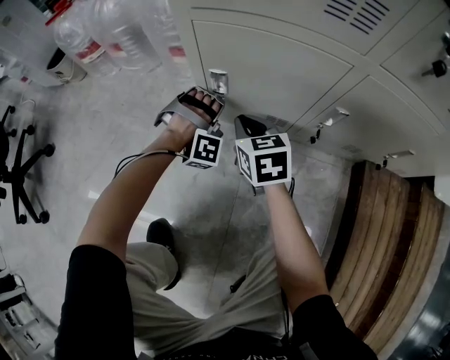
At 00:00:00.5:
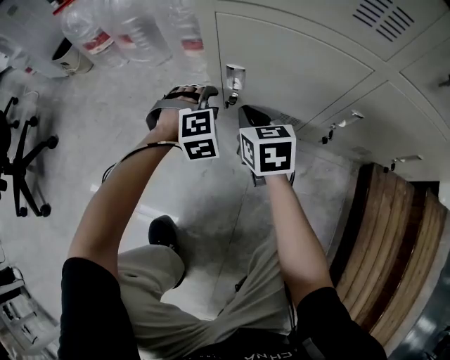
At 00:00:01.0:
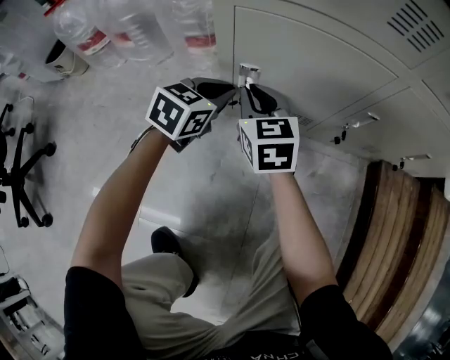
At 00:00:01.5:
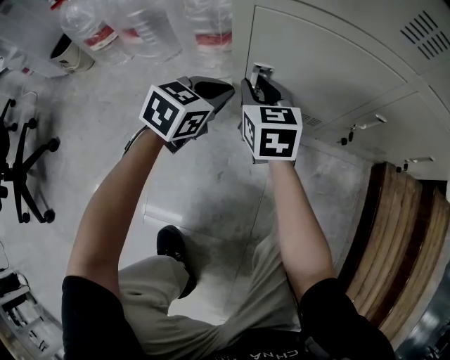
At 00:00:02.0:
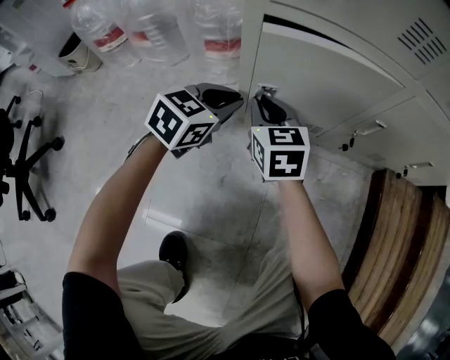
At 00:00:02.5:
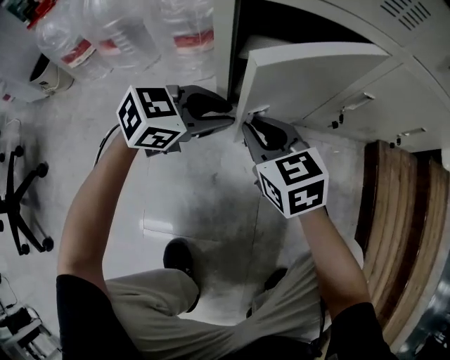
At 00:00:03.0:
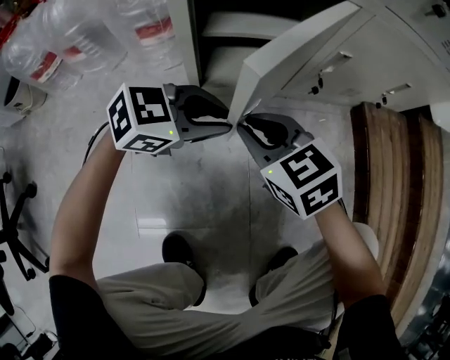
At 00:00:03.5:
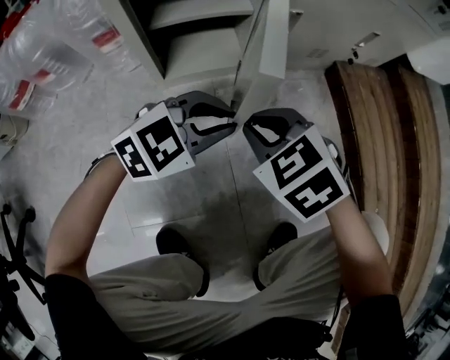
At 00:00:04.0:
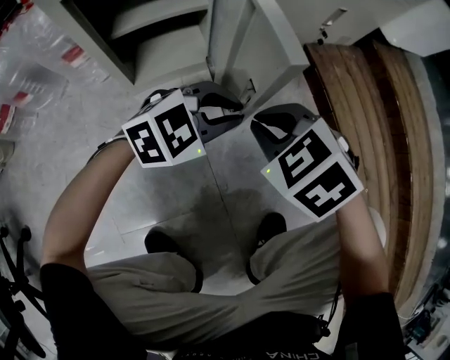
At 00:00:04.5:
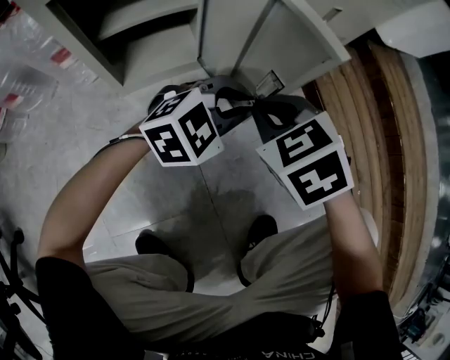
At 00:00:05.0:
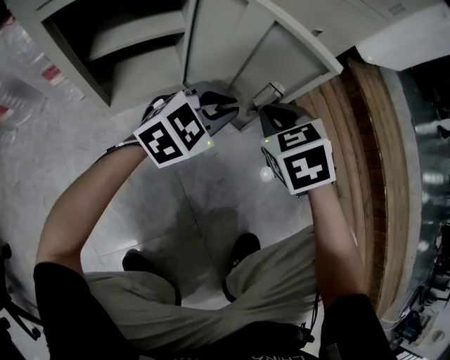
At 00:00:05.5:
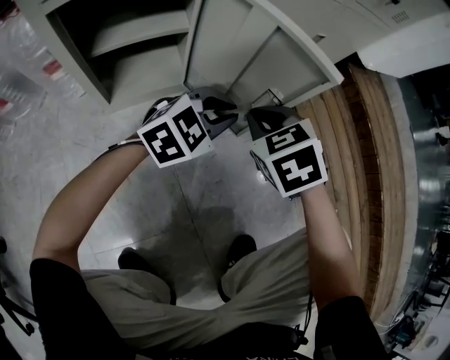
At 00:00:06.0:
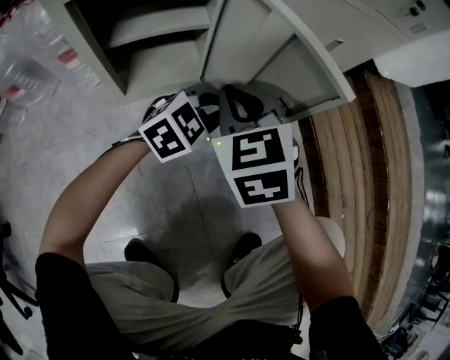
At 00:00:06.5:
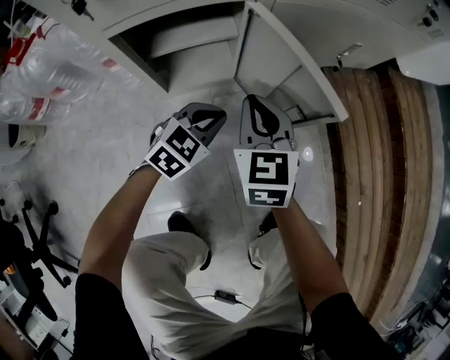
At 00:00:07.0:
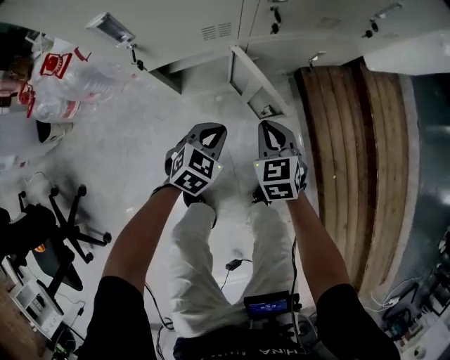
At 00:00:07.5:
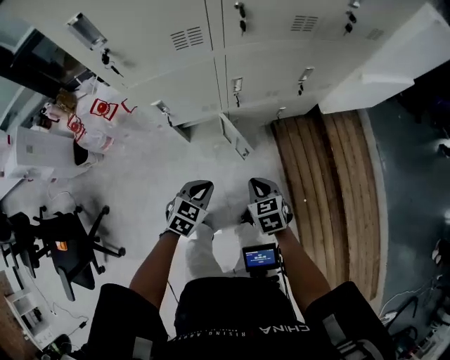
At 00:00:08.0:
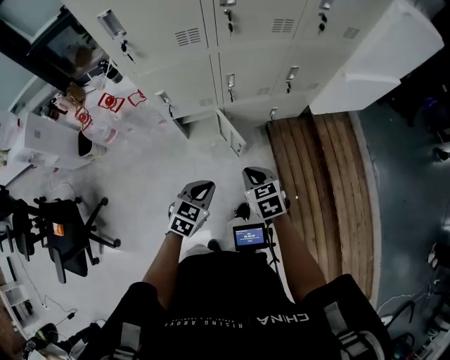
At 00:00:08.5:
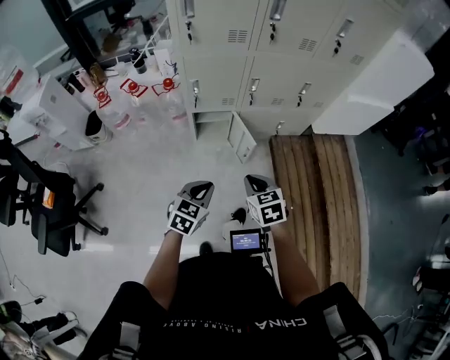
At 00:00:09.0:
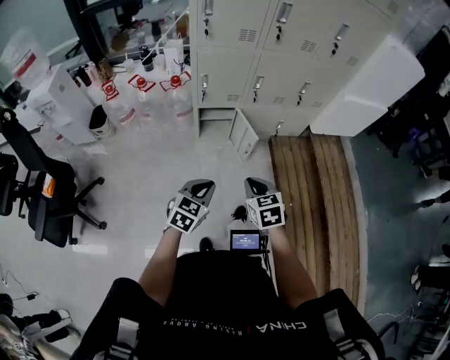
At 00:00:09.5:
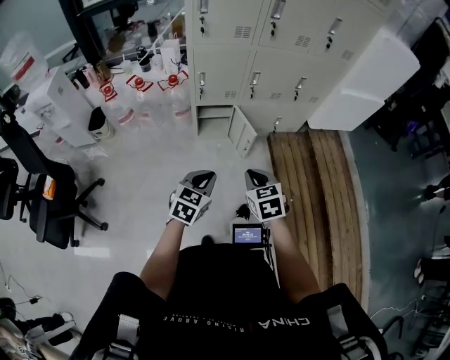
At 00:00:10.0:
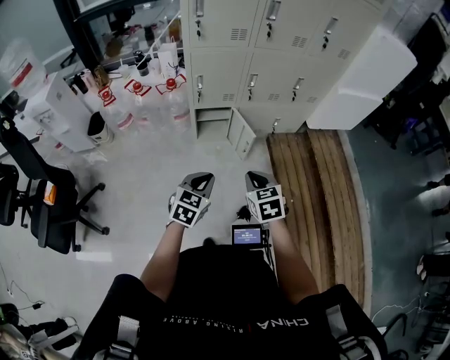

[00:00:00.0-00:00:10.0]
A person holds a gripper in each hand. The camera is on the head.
00:00:00.0 to 00:00:02.0: The right gripper ends up some 10 cm from where it was, while the left gripper moves upward, approximately 10 cm, rolls counterclockwise, seen from behind, by roughly 90 degrees, and opens, then closes once more.
00:00:02.0 to 00:00:04.0: The right gripper shifts by about 30 cm, and angles its fingers downward, by roughly 30 degrees. Meanwhile the left gripper changes place by some 30 cm, and rotates some 60 degrees.
00:00:04.0 to 00:00:06.0: The right gripper travels forward and to the left by about 10 cm, and swivels some 30 degrees. The left gripper travels forward by roughly 10 cm.
00:00:06.0 to 00:00:08.0: The left gripper shifts about 70 cm upward and backward, and swivels about 40 degrees. The right gripper is displaced upward by about 50 cm, and rotates some 20 degrees.
00:00:08.0 to 00:00:10.0: The left gripper is displaced backward and to the left by roughly 25 cm, while the right gripper travels backward by approximately 25 cm.

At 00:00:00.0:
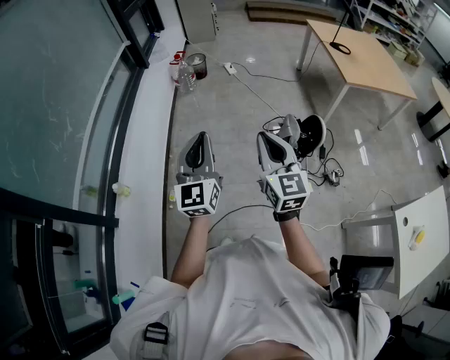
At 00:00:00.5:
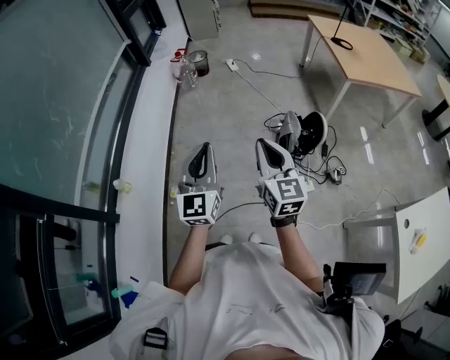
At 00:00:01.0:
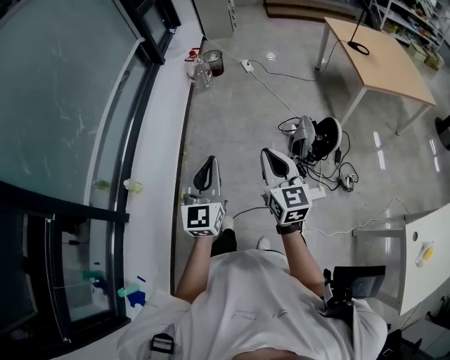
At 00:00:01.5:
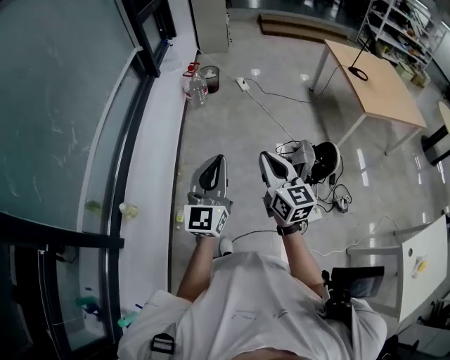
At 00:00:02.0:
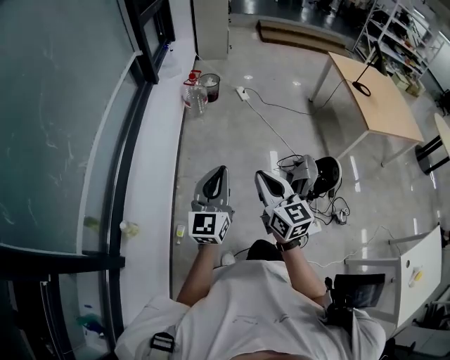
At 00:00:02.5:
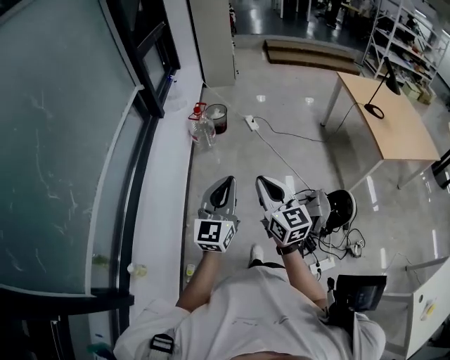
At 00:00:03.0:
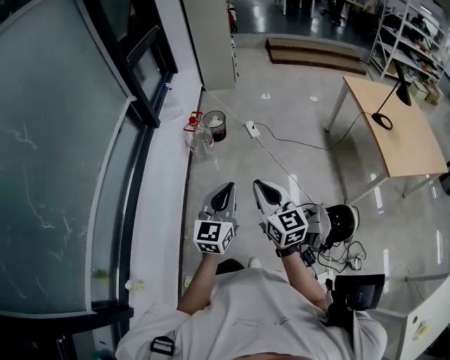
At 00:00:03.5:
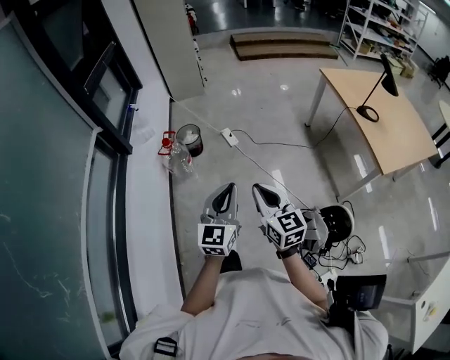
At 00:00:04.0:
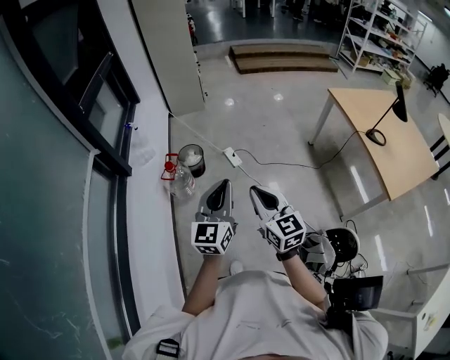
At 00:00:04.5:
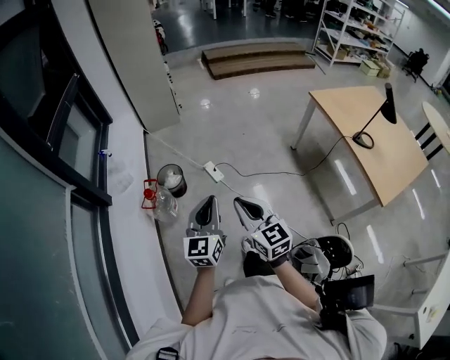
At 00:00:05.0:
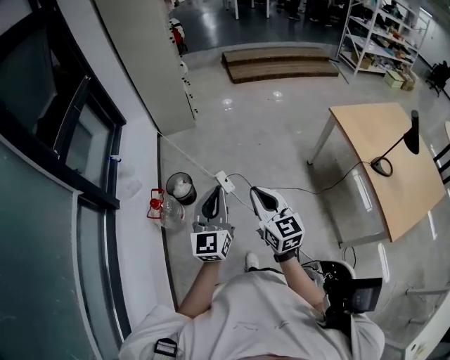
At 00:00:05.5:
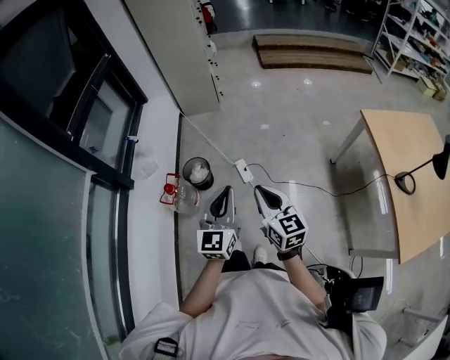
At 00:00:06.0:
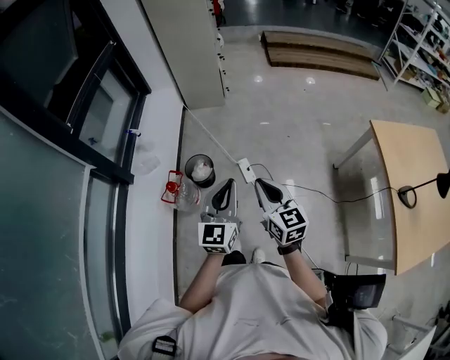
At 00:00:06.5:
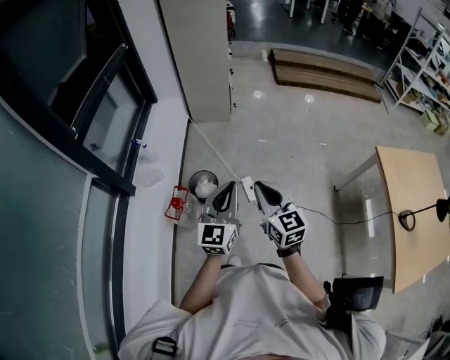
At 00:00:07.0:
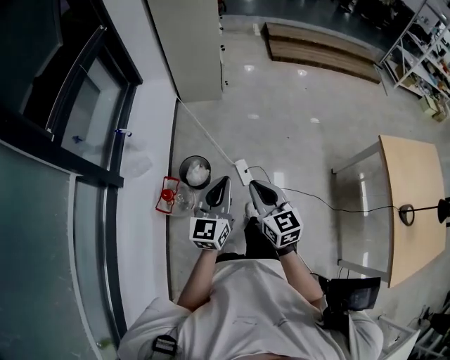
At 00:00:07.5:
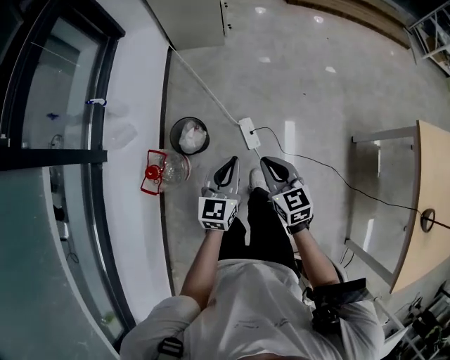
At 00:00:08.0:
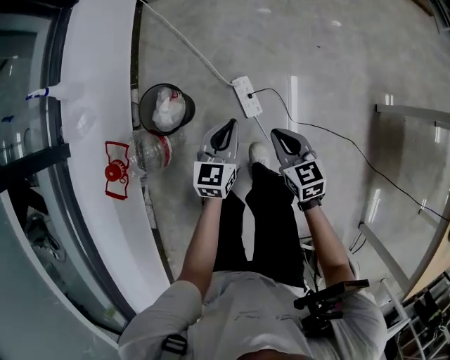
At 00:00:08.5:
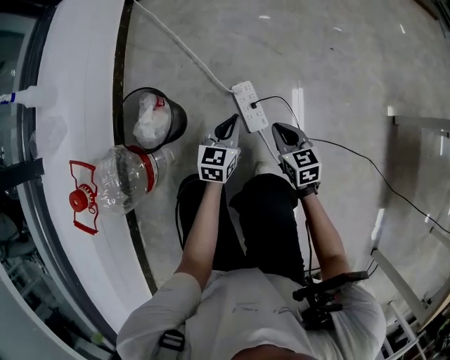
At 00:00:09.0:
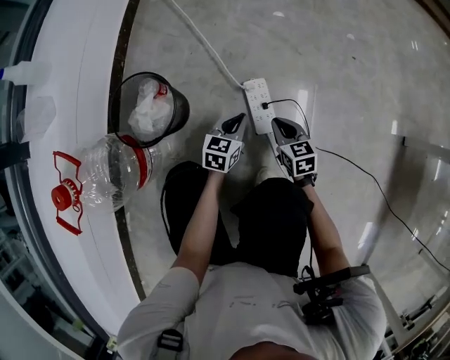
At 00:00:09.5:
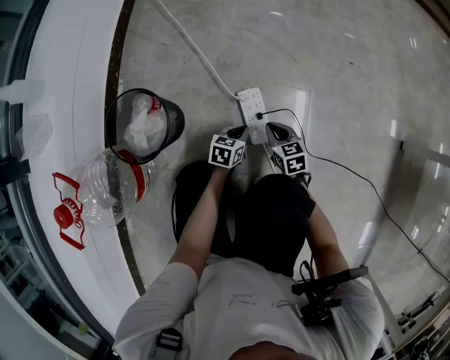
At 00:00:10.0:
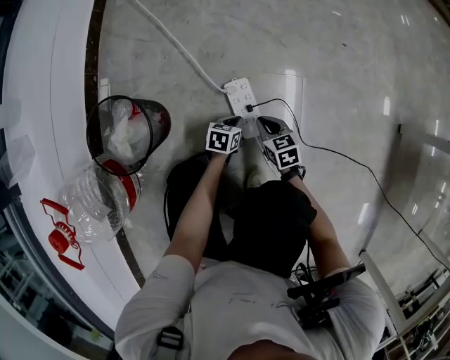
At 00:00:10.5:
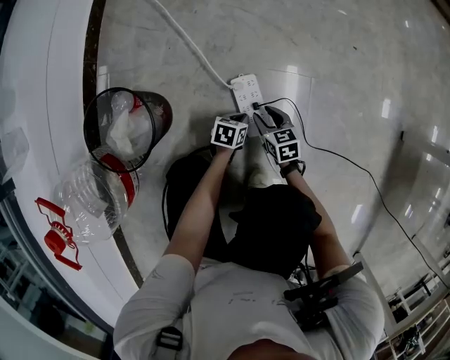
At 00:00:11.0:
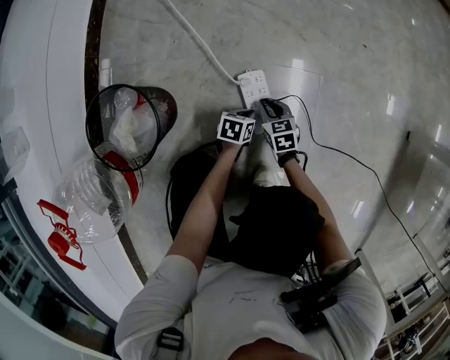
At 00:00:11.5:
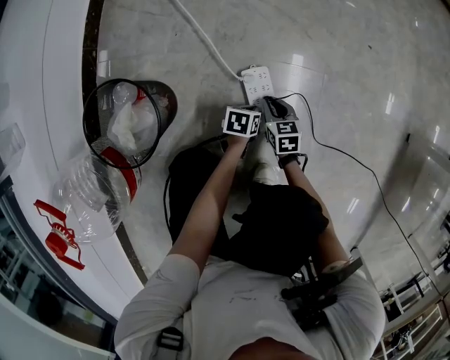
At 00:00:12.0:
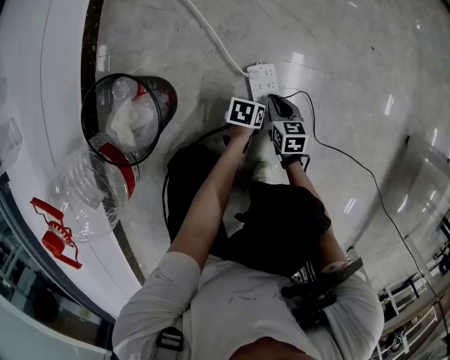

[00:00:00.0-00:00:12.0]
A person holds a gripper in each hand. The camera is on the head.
00:00:00.0 to 00:00:02.0: Both grippers travel together forward and to the left, some 25 cm.
00:00:02.0 to 00:00:04.0: The pair of grippers is taken forward, approximately 60 cm.
00:00:04.0 to 00:00:06.0: Both grippers move forward, approximately 35 cm.
00:00:06.0 to 00:00:08.0: The grippers both shift downward and forward by roughly 60 cm. The right gripper changes its angle by about 20 degrees; the left gripper turns by about 20 degrees.
00:00:08.0 to 00:00:10.0: Both grippers move downward, about 50 cm. The left gripper swivels some 40 degrees.
00:00:10.0 to 00:00:12.0: The right gripper moves approximately 5 cm, and opens, then closes once more.

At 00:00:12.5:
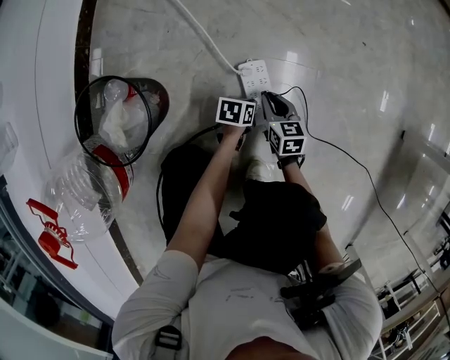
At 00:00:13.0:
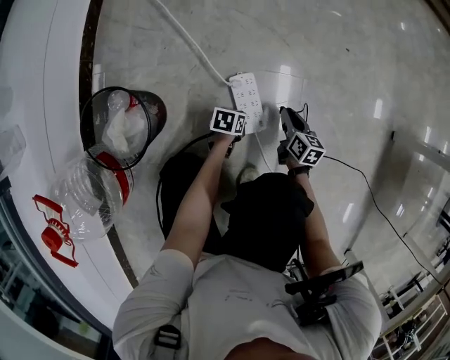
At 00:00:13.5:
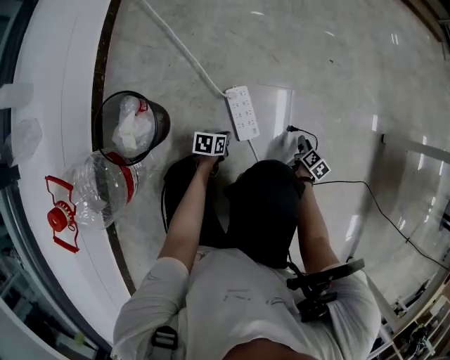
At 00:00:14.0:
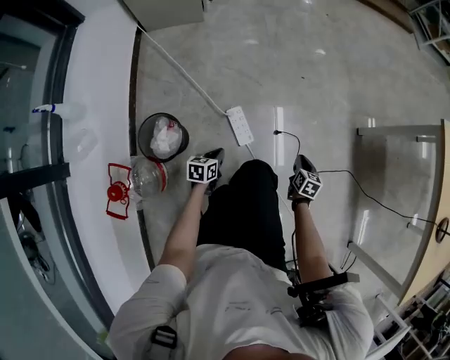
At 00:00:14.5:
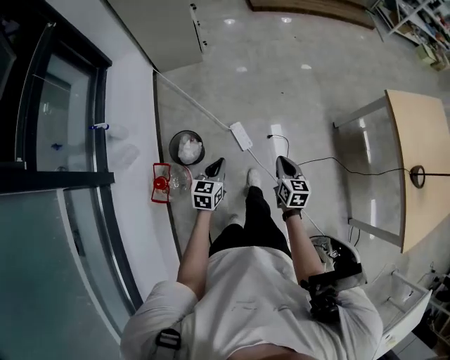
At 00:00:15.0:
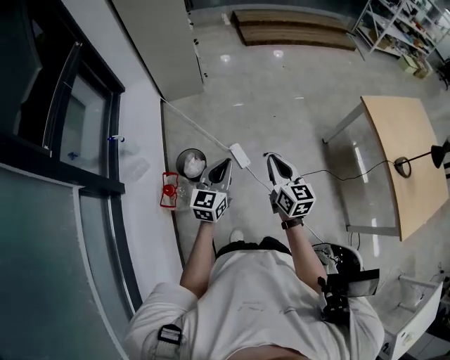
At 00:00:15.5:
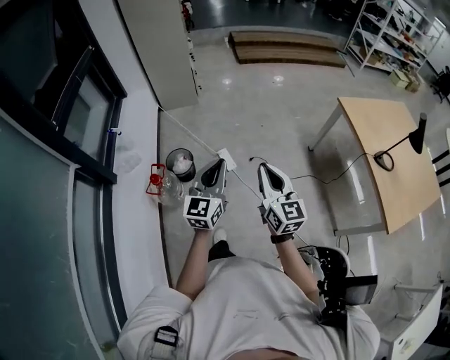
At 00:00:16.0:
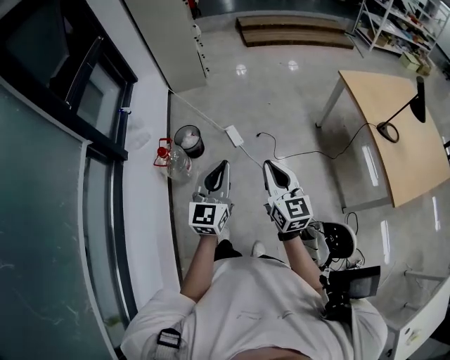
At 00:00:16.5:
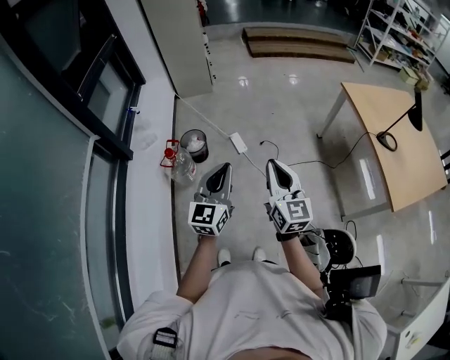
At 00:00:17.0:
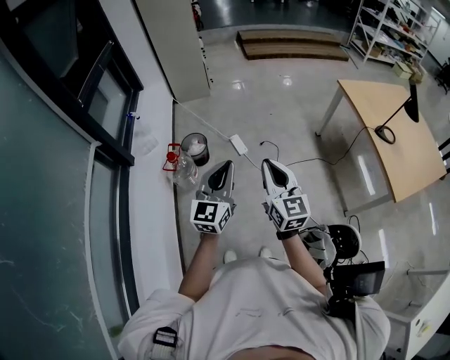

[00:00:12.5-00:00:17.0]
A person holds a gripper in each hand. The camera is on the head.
00:00:12.5 to 00:00:14.5: The two grippers go roughly 70 cm upward. The right gripper swivels about 30 degrees, and opens, then closes once more; the left gripper changes its angle by roughly 50 degrees.
00:00:14.5 to 00:00:17.0: Both grippers are carried backward, some 40 cm. The two grippers go some 35 cm upward. The right gripper tilts its fingers about 30 degrees upward; the left gripper angles its fingers upward, by roughly 30 degrees.
